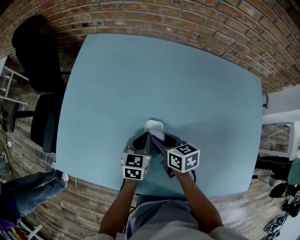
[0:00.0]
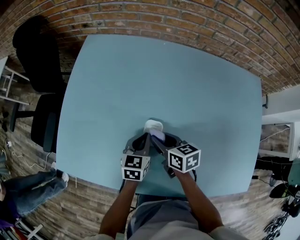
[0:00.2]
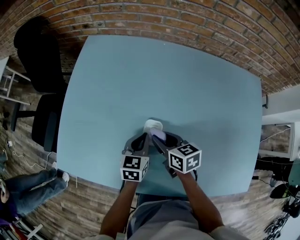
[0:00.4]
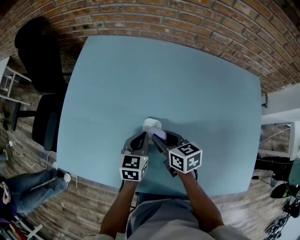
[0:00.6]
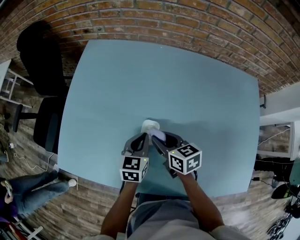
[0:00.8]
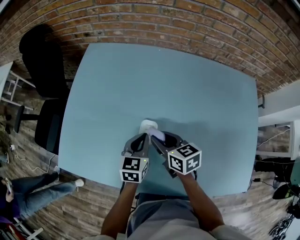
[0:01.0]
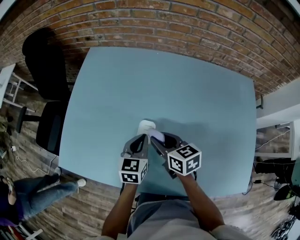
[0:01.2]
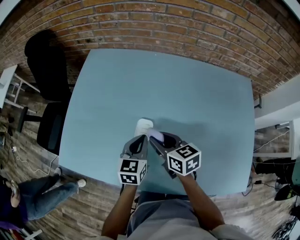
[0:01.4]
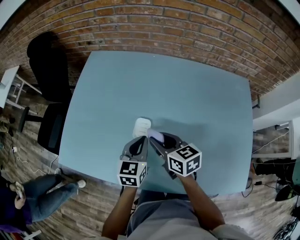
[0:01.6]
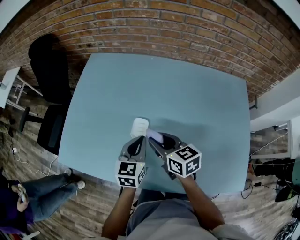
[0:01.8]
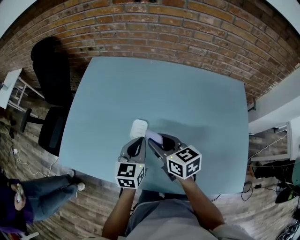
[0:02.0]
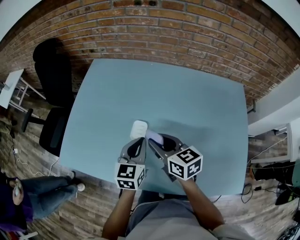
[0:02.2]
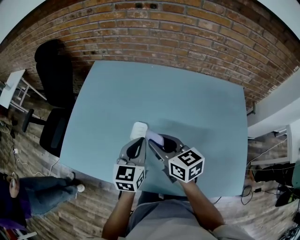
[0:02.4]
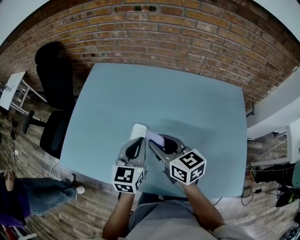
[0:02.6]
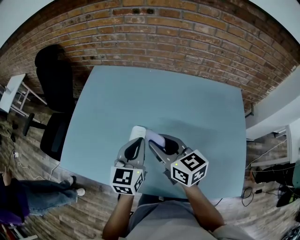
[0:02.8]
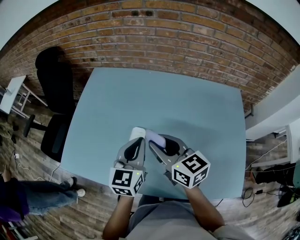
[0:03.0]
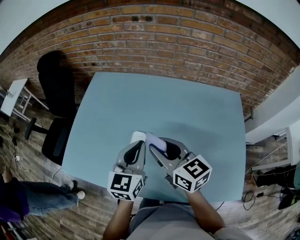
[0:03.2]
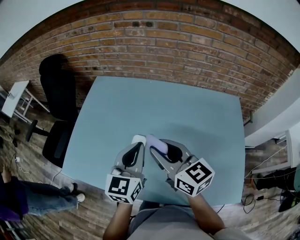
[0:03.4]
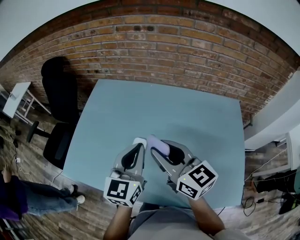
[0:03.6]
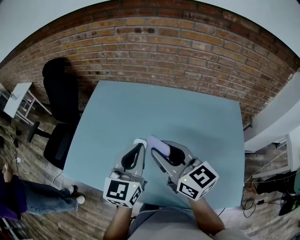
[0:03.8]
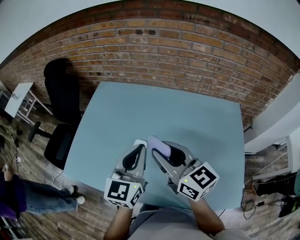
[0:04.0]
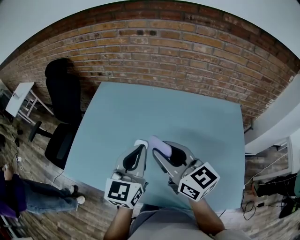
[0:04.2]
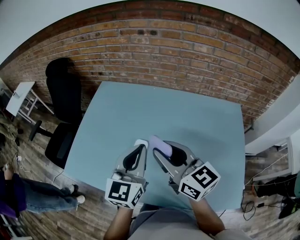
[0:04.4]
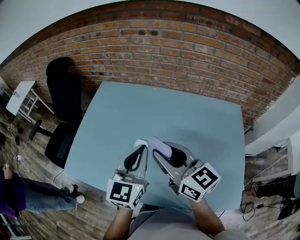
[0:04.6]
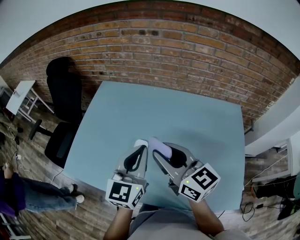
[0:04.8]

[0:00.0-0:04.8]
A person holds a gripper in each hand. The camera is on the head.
0:00.0 to 0:01.6: The left gripper travels upward and backward by about 10 cm; the right gripper moves upward, roughly 10 cm.
0:01.6 to 0:03.2: The grippers both shift upward by roughly 15 cm.
0:03.2 to 0:04.8: The two grippers go roughly 5 cm upward.

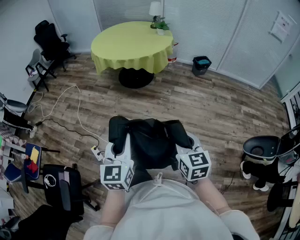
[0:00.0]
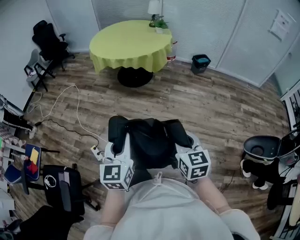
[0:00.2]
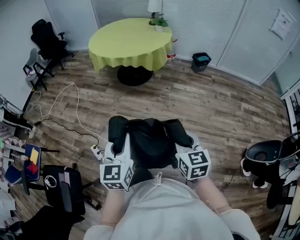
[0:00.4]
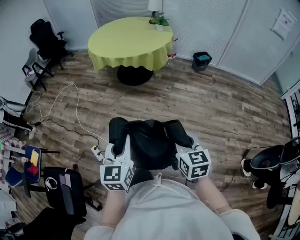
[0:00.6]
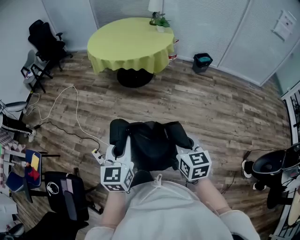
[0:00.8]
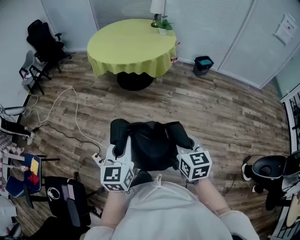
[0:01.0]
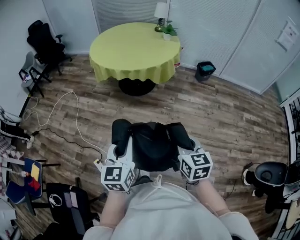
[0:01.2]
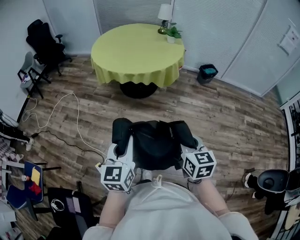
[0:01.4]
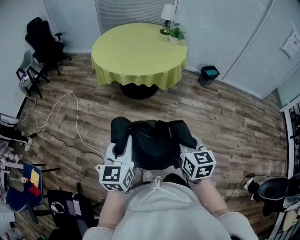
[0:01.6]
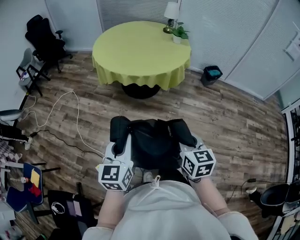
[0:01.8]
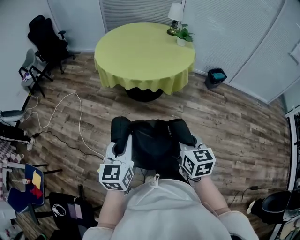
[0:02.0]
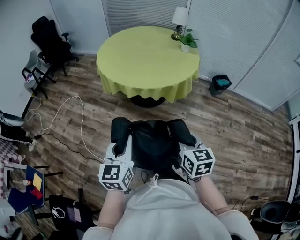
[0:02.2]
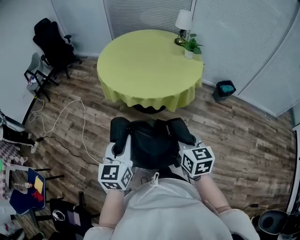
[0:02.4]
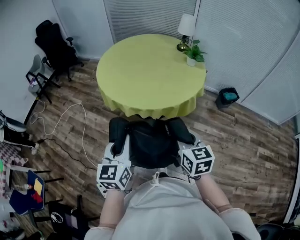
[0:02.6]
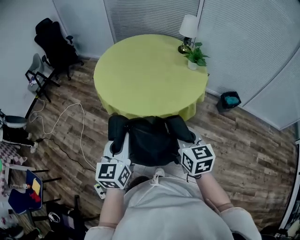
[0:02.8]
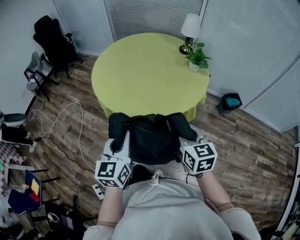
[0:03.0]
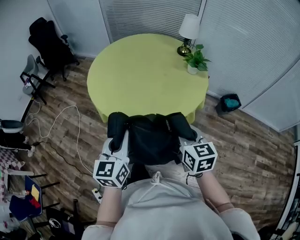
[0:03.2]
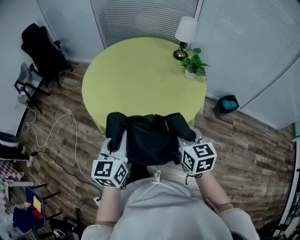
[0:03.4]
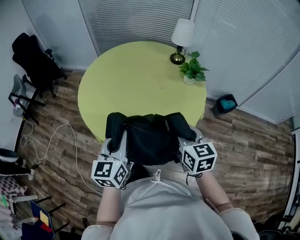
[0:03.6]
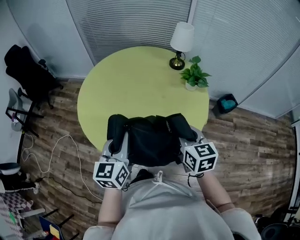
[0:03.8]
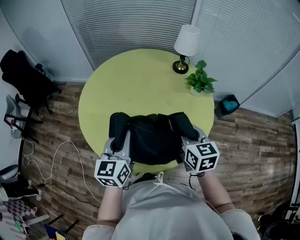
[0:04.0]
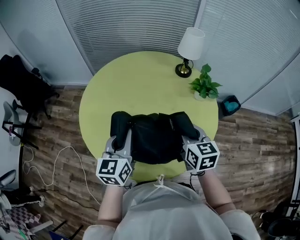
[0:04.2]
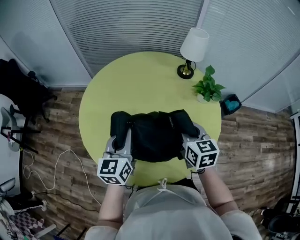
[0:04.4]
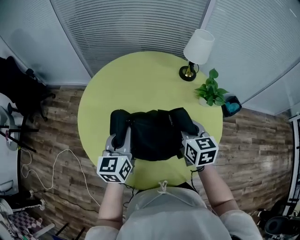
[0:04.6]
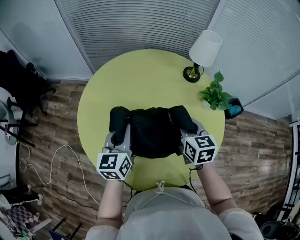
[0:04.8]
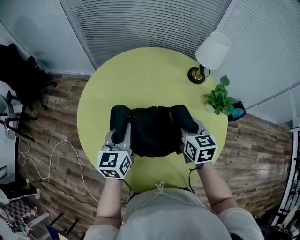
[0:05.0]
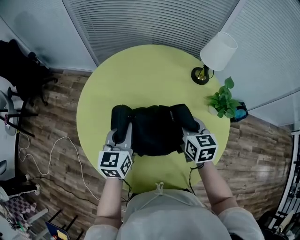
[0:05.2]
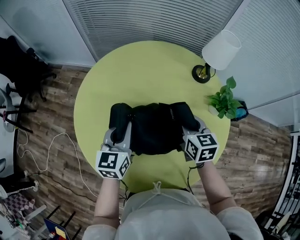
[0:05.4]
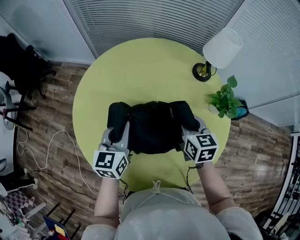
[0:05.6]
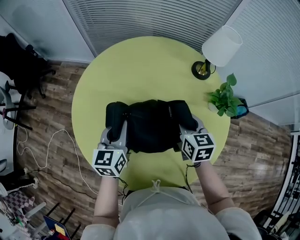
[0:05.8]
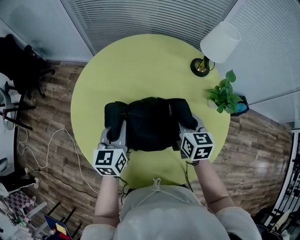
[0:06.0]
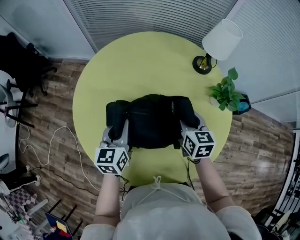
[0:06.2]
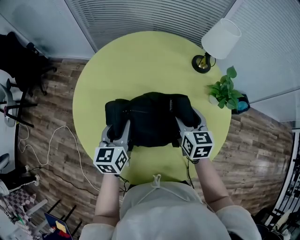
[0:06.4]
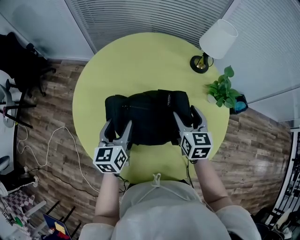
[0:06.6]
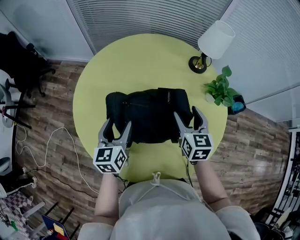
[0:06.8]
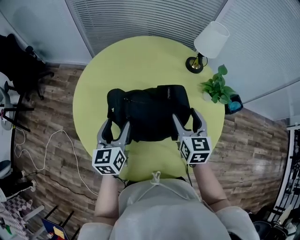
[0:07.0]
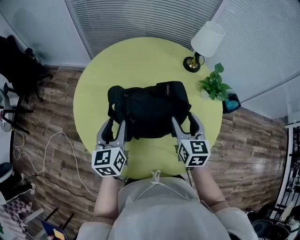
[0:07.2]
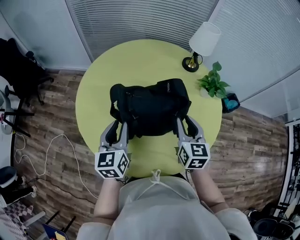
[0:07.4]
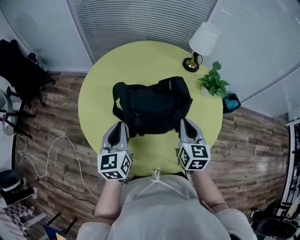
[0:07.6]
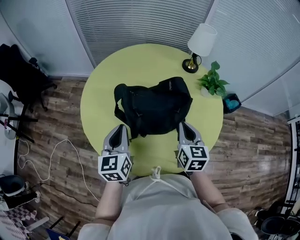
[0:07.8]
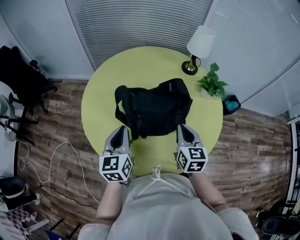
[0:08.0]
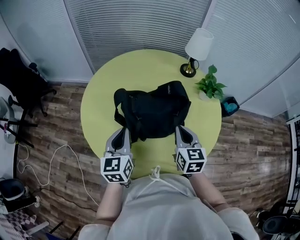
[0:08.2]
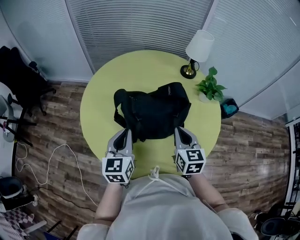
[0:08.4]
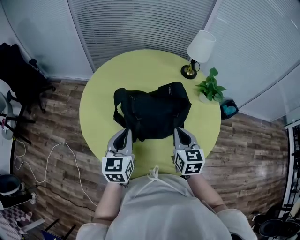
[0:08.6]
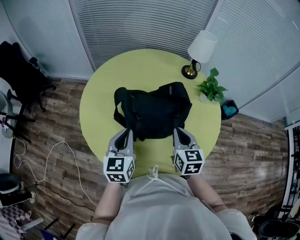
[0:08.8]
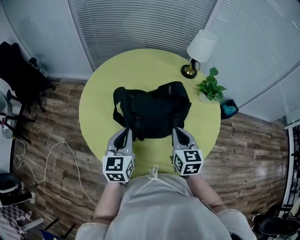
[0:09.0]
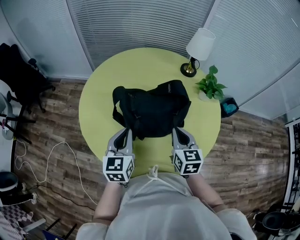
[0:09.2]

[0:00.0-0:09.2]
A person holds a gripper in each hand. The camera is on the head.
0:00.0 to 0:01.6: The grippers both shift forward and to the left by approximately 35 cm.
0:01.6 to 0:03.0: The pair of grippers is taken forward, roughly 40 cm.
0:03.0 to 0:04.6: The pair of grippers is taken forward, some 50 cm.
0:04.6 to 0:06.2: The grippers both shift downward and forward by approximately 10 cm.
0:06.2 to 0:07.6: The two grippers go about 15 cm backward and upward. The left gripper opens, then closes again. The right gripper opens and closes again.
0:07.6 to 0:09.2: The grippers move only a little.

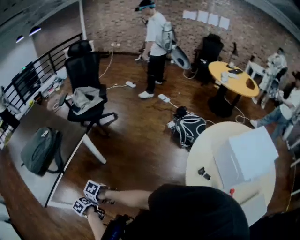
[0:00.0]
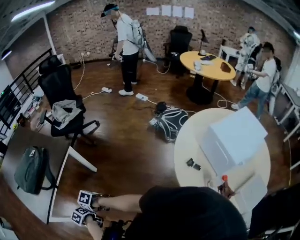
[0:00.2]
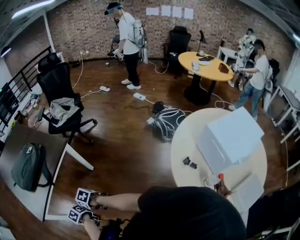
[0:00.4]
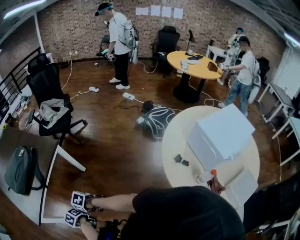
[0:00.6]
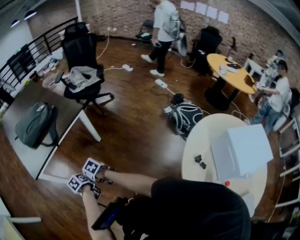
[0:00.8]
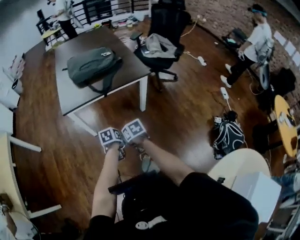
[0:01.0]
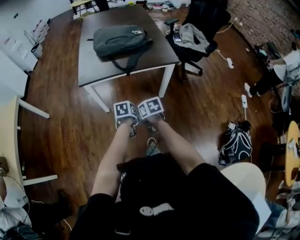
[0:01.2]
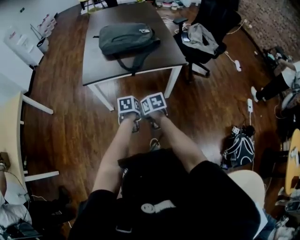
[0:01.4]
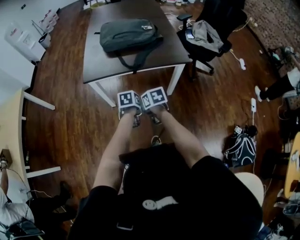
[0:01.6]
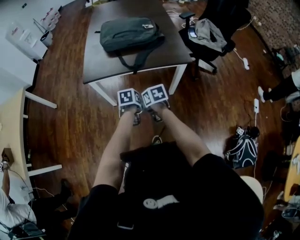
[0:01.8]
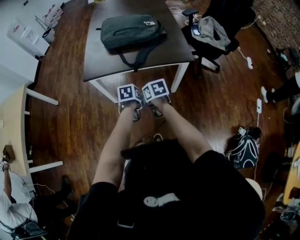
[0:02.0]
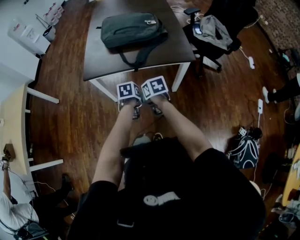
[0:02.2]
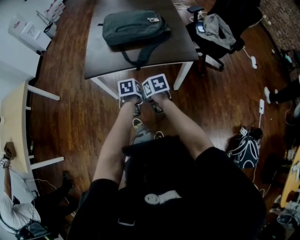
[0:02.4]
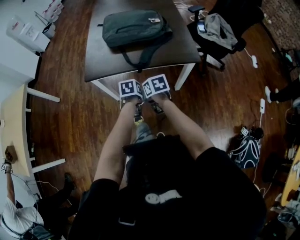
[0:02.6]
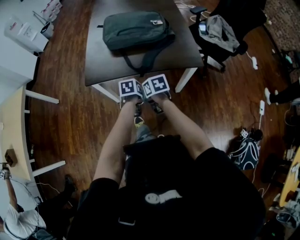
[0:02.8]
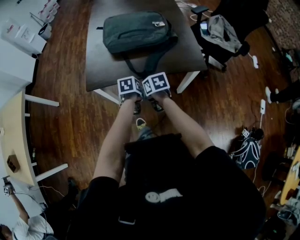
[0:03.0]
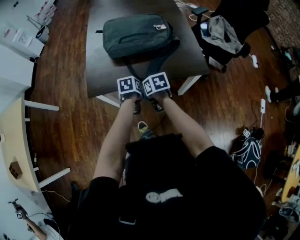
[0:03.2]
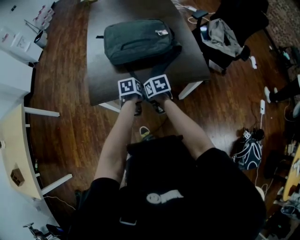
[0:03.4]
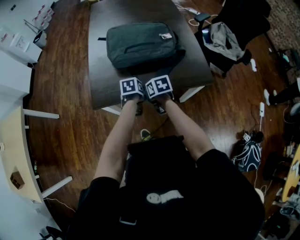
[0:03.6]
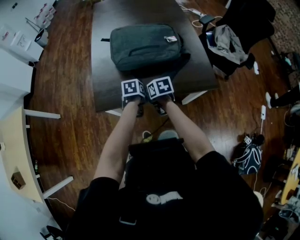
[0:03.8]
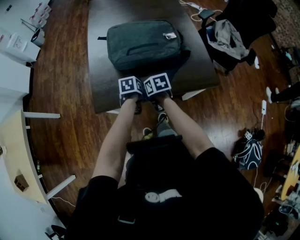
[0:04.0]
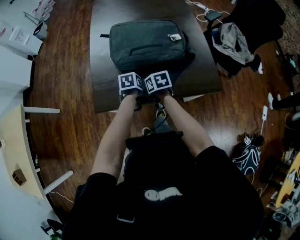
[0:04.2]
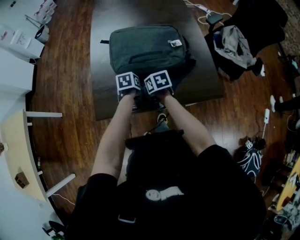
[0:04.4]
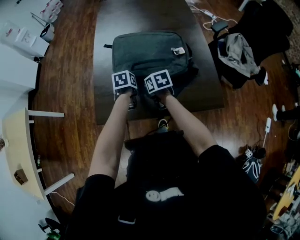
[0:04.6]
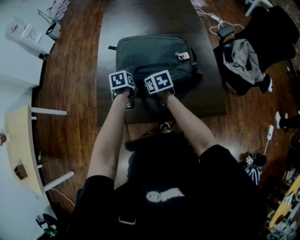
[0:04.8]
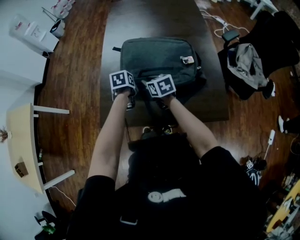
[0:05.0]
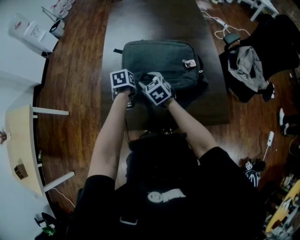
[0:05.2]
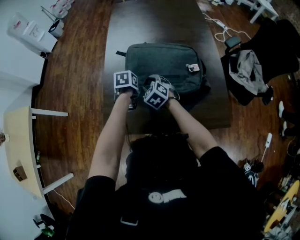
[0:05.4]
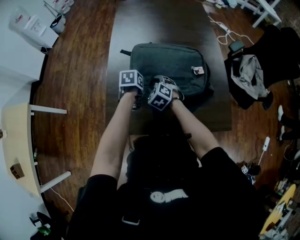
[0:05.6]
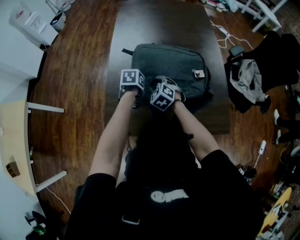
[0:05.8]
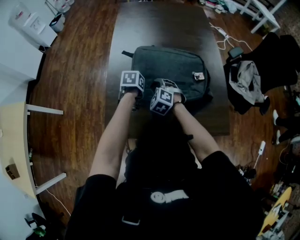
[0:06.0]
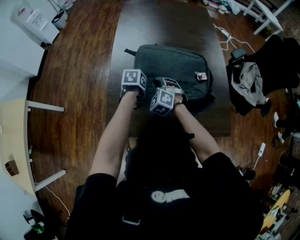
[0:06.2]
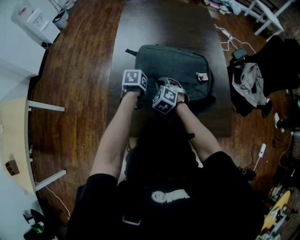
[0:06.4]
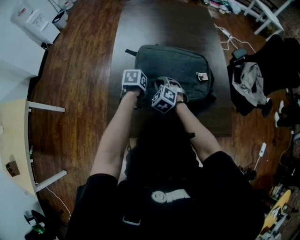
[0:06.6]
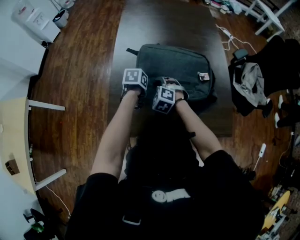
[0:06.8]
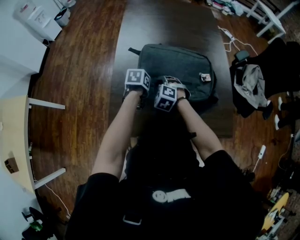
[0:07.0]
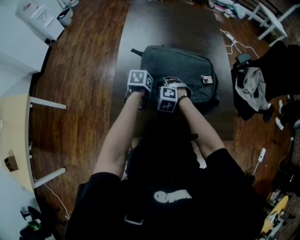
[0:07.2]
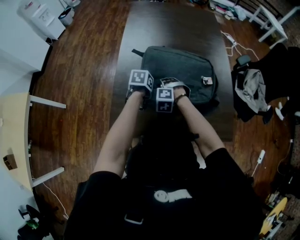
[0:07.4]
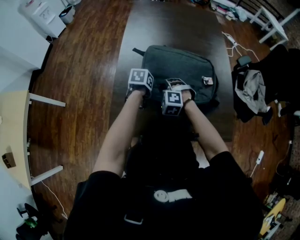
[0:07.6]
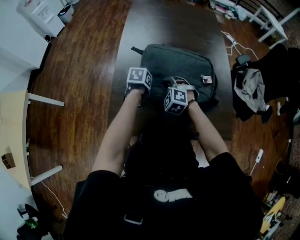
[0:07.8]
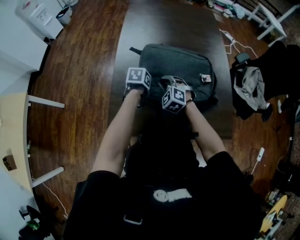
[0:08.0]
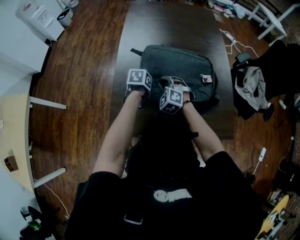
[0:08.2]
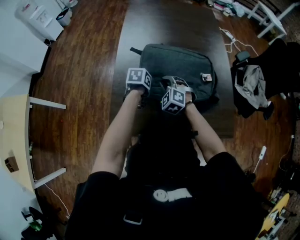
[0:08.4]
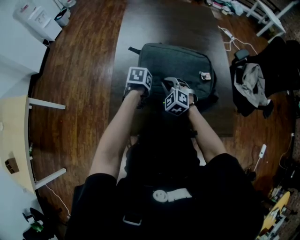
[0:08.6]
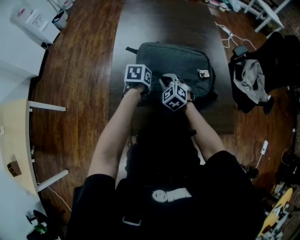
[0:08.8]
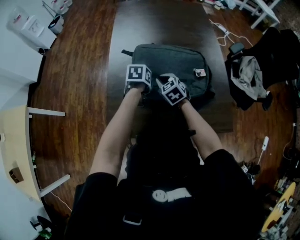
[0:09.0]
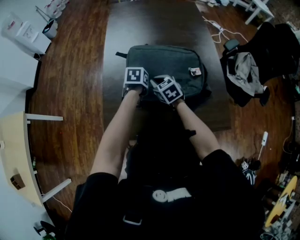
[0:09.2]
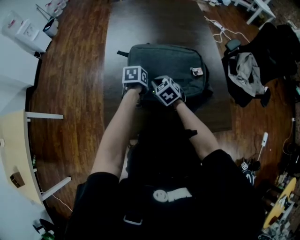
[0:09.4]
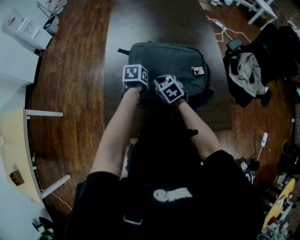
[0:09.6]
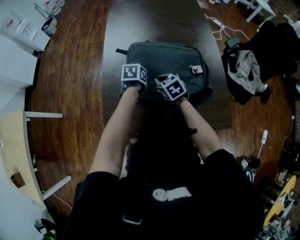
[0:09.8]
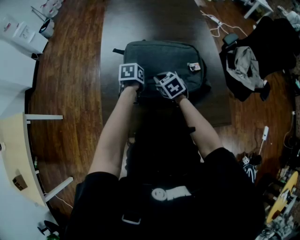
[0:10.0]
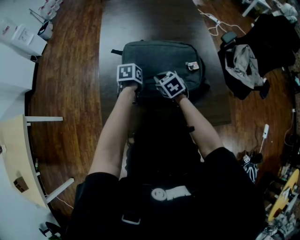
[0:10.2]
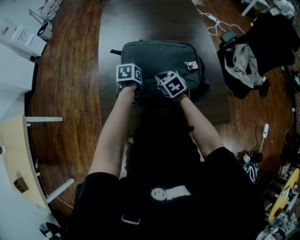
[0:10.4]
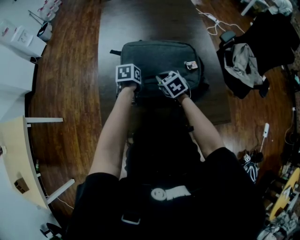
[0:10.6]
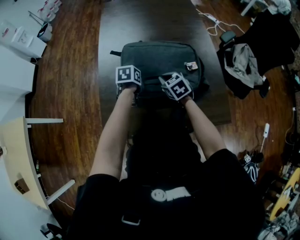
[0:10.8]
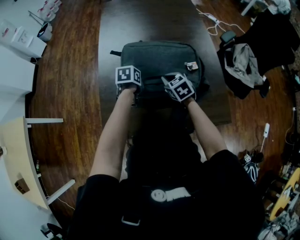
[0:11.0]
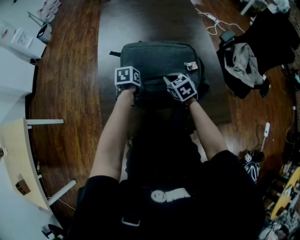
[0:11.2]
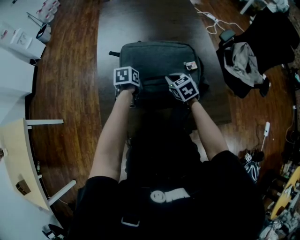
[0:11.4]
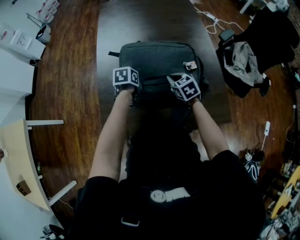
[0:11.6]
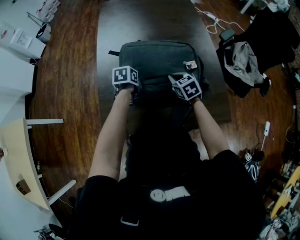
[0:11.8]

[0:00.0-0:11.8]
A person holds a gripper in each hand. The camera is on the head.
0:00.0 to 0:01.4: The left gripper goes downward and returns, about 5 cm each way; the right gripper ends up roughly 5 cm from where it was.
0:01.4 to 0:03.0: The grippers both shift forward by some 20 cm.
0:03.0 to 0:04.4: Both grippers move forward, about 25 cm.
0:04.4 to 0:06.0: The left gripper changes place by about 15 cm. Meanwhile the right gripper changes place by some 15 cm, rolls counterclockwise, seen from behind, by about 70 degrees, and opens its fingers.
0:06.0 to 0:07.4: The right gripper swivels some 30 degrees.
0:07.4 to 0:08.8: The right gripper ends up about 5 cm from where it was, and changes its angle by approximately 40 degrees.
0:08.8 to 0:10.4: The right gripper changes its angle by approximately 30 degrees.
0:10.4 to 0:11.8: The right gripper shifts roughly 5 cm to the right.
